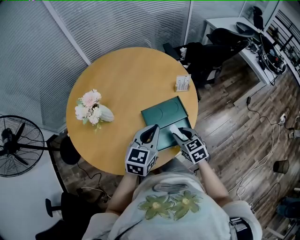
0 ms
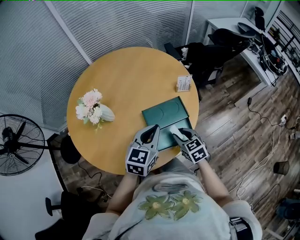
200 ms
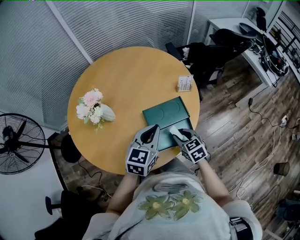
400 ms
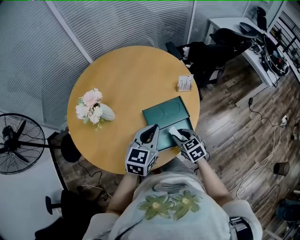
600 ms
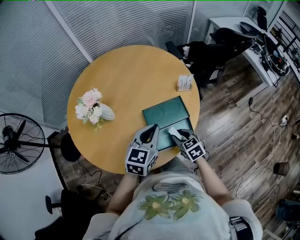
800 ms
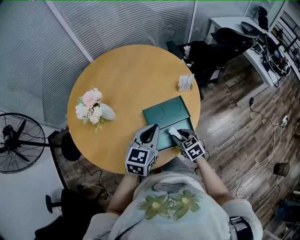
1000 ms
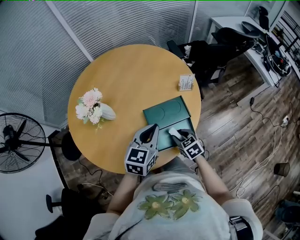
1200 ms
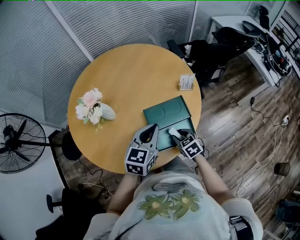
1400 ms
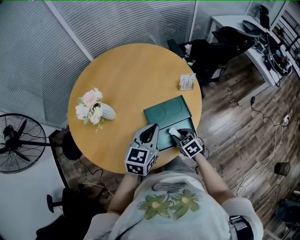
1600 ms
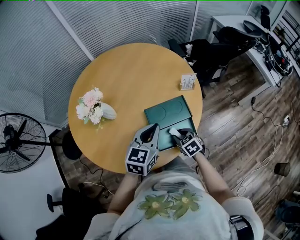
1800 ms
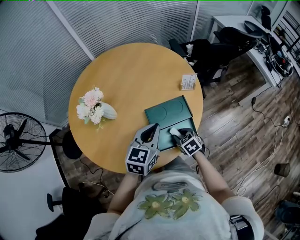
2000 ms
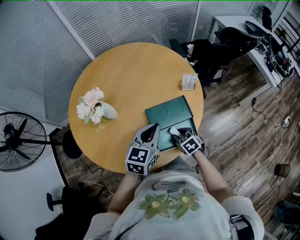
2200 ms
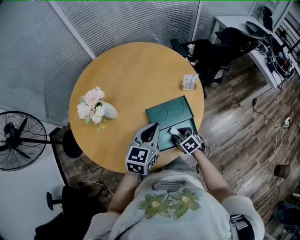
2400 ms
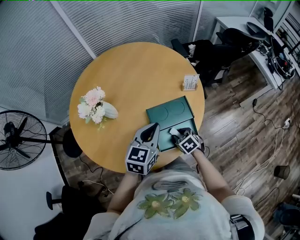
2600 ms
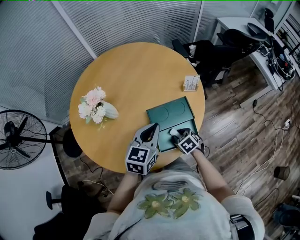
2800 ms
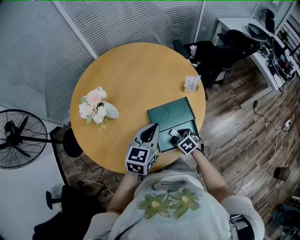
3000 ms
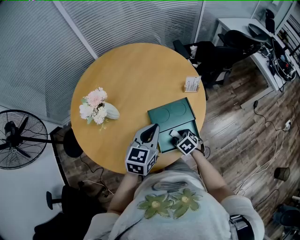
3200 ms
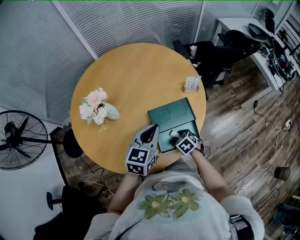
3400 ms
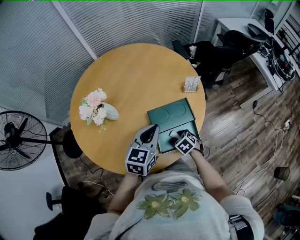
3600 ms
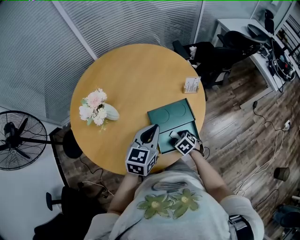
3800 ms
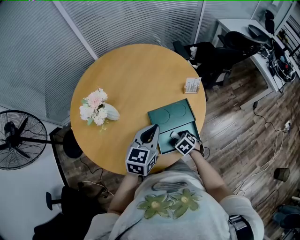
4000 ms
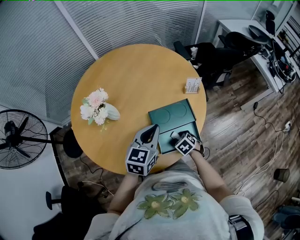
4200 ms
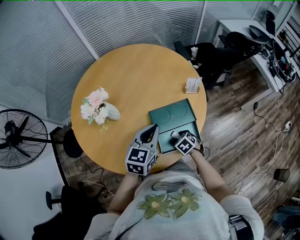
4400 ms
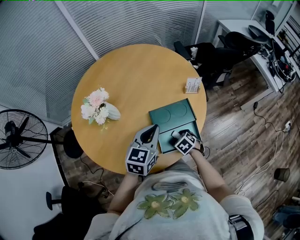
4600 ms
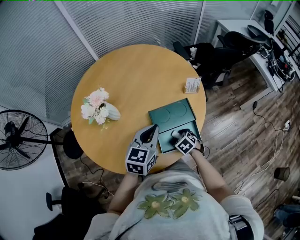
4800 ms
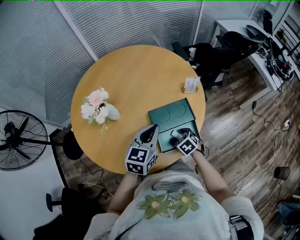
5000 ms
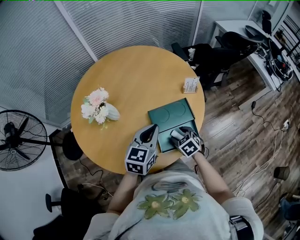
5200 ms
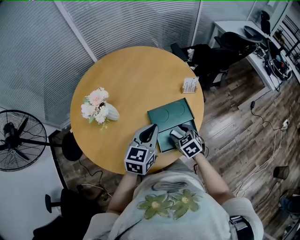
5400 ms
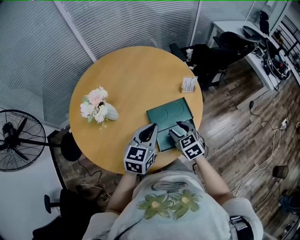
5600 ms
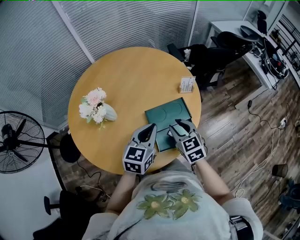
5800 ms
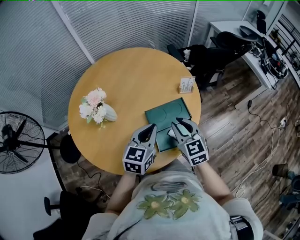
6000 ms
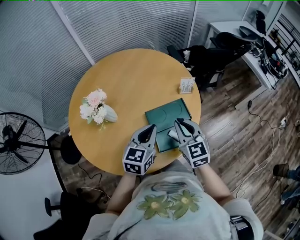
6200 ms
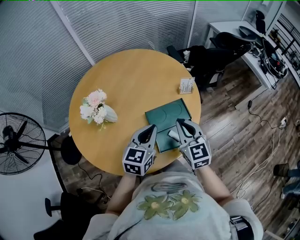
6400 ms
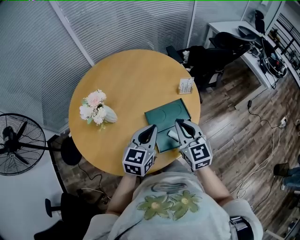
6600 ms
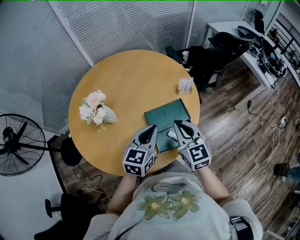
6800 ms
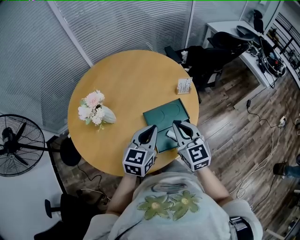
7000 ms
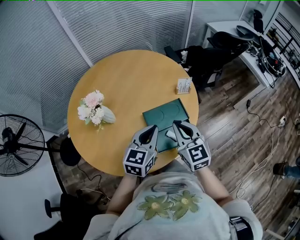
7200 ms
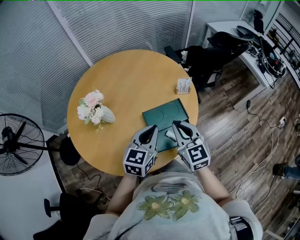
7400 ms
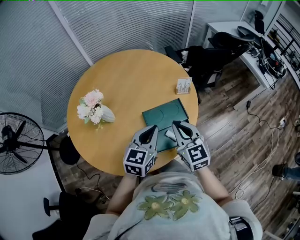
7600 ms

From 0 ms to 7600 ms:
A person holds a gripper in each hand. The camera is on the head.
From 0 ms to 1600 ms: The right gripper shifts roughly 10 cm downward.
From 1600 ms to 3000 ms: The grippers move only a little.
From 3000 ms to 4600 ms: The right gripper opens its fingers.
From 4600 ms to 6000 ms: The right gripper heads upward, covering about 25 cm, tips its fingers upward by some 50 degrees, and closes.
From 6000 ms to 7600 ms: The grippers make only small movements.

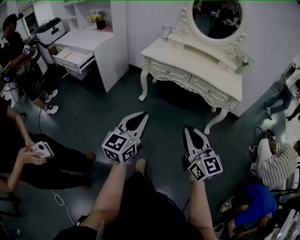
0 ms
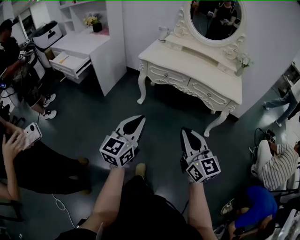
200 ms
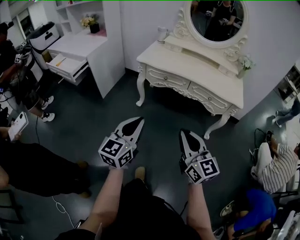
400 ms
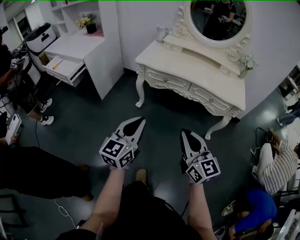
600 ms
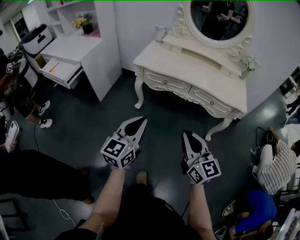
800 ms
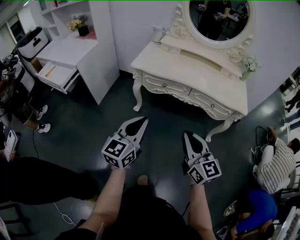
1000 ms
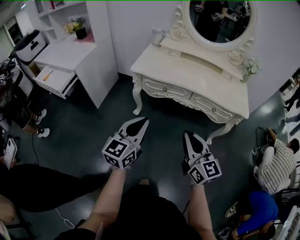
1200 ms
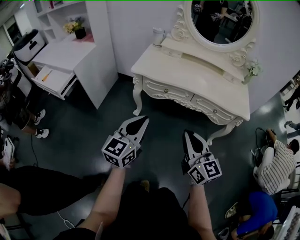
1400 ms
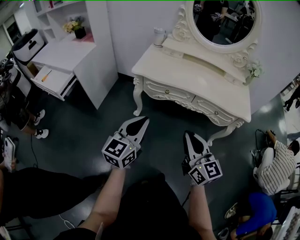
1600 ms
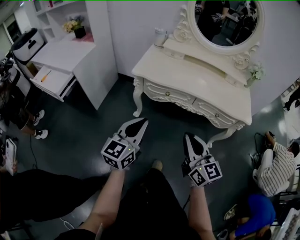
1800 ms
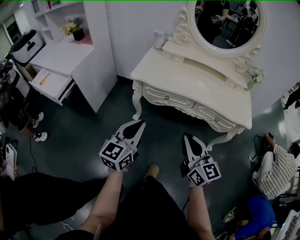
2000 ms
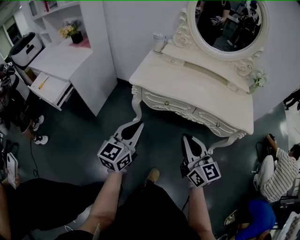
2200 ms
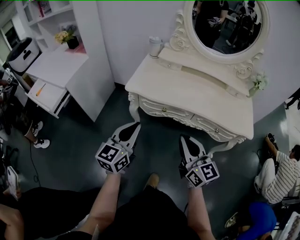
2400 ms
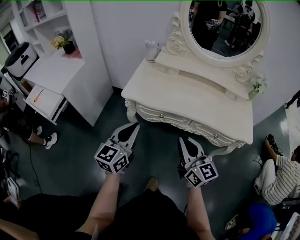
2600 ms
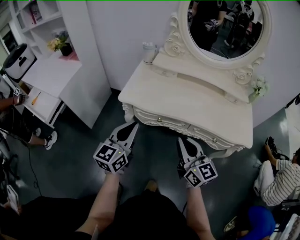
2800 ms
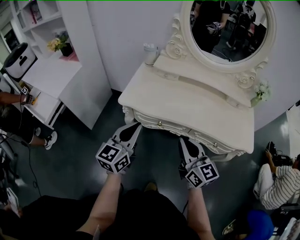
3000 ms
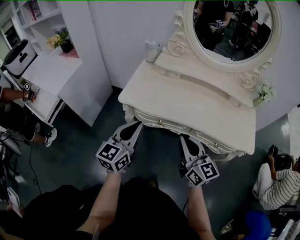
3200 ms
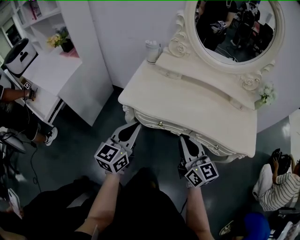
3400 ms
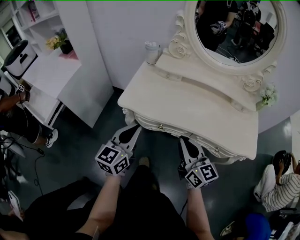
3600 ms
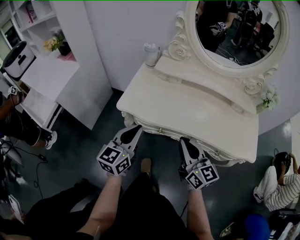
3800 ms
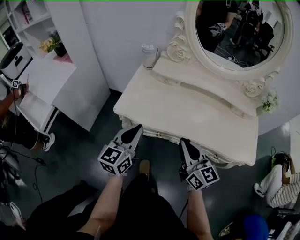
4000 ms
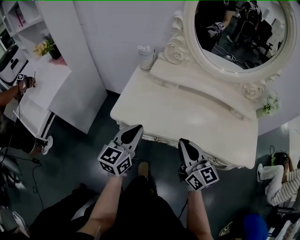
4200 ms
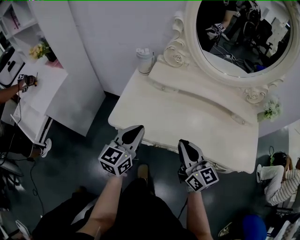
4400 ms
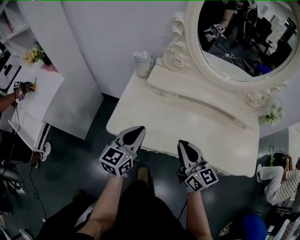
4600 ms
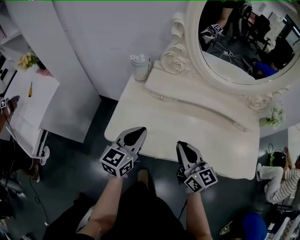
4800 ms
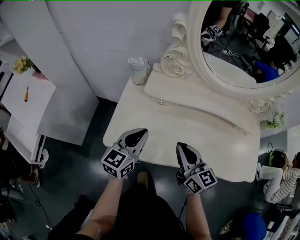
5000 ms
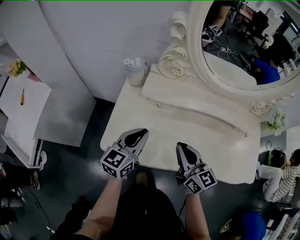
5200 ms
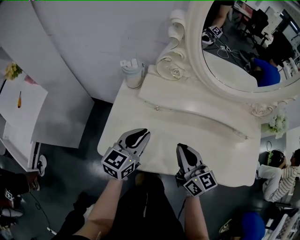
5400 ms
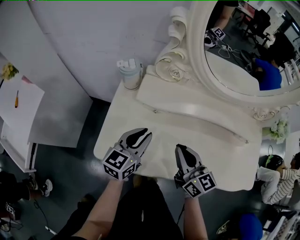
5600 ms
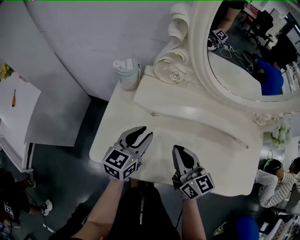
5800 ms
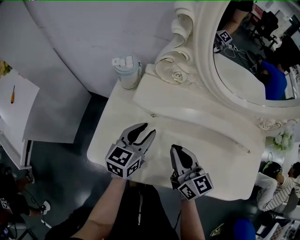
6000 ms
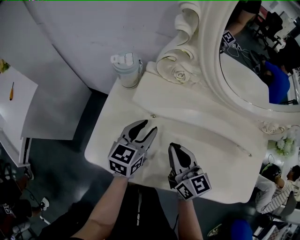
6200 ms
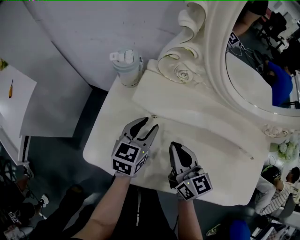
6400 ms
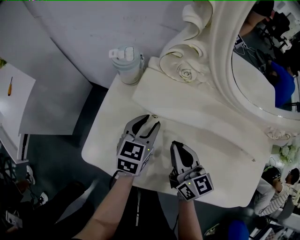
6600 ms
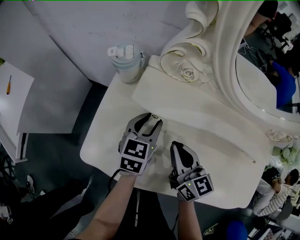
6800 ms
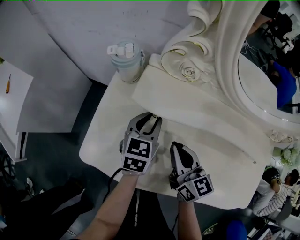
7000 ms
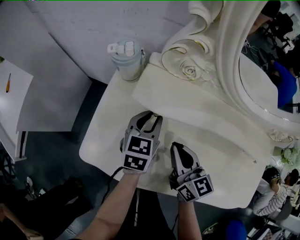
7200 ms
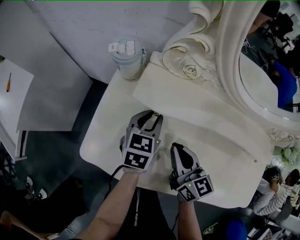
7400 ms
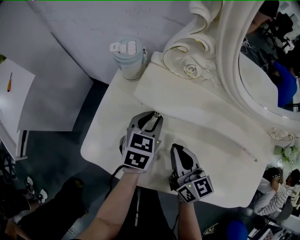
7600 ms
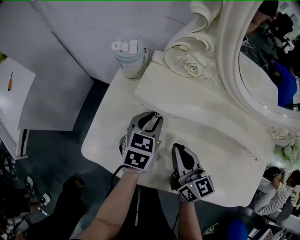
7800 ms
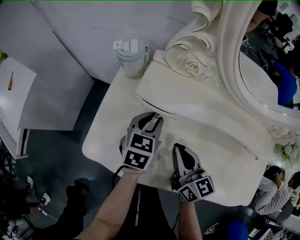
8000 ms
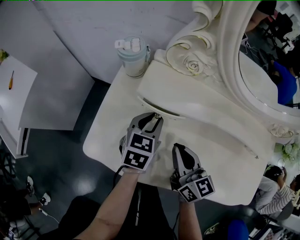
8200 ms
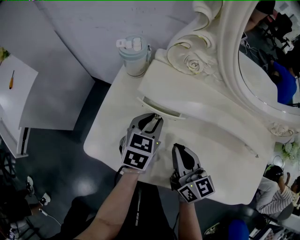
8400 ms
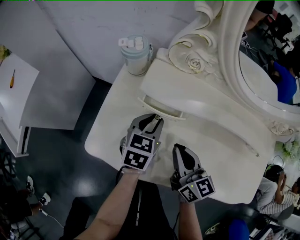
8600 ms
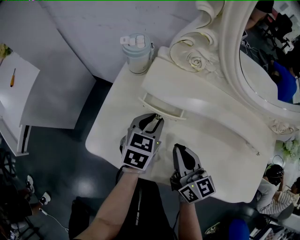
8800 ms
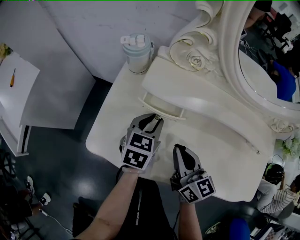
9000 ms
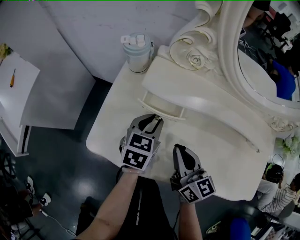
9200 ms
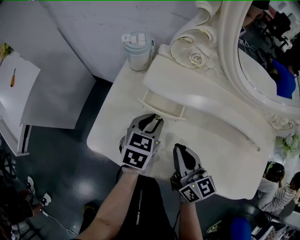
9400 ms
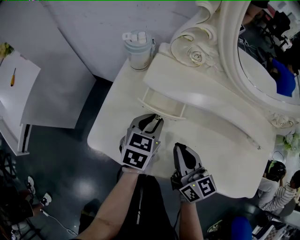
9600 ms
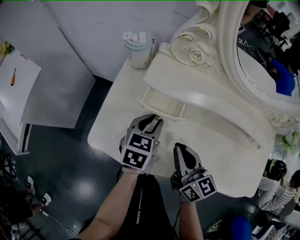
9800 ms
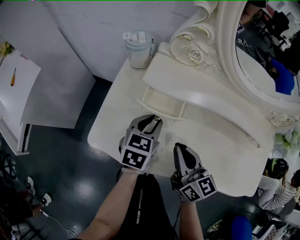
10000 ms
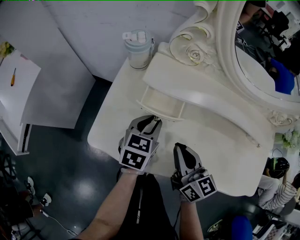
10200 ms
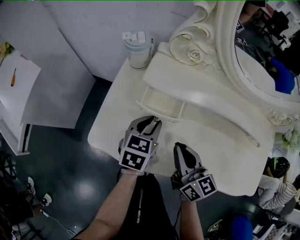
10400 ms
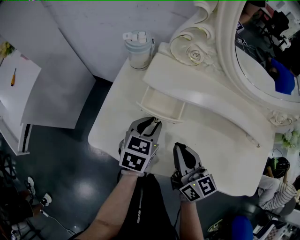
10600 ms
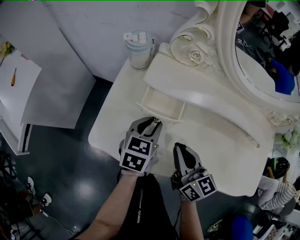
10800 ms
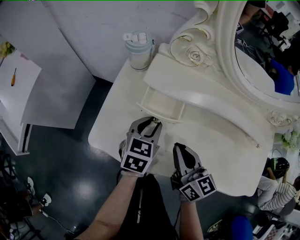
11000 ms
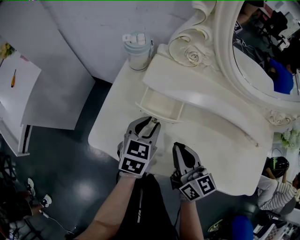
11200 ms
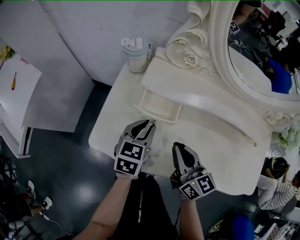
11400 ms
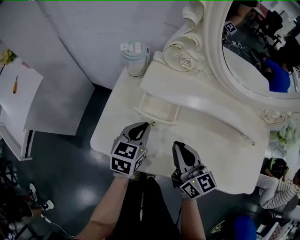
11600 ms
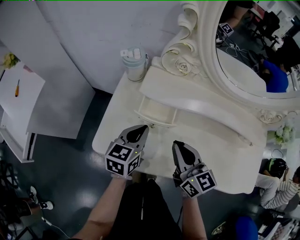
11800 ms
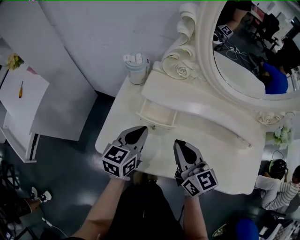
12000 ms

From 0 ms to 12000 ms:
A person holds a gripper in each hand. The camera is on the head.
From 0 ms to 1600 ms: Both grippers move forward, approximately 30 cm.
From 1600 ms to 3000 ms: Both grippers move forward, approximately 25 cm.
From 3000 ms to 4400 ms: The grippers both shift forward by roughly 15 cm.
From 4400 ms to 6000 ms: The right gripper heads forward, covering some 20 cm, while the left gripper travels forward and downward by roughly 25 cm, and opens its fingers.
From 6000 ms to 7600 ms: The left gripper shifts approximately 10 cm downward and forward, and changes its angle by some 20 degrees. The right gripper shifts by approximately 5 cm.
From 7600 ms to 9000 ms: There are only small adjustments of the grippers.
From 9000 ms to 10400 ms: The grippers make only small movements.
From 10400 ms to 12000 ms: The two grippers go some 5 cm upward. The left gripper closes up.

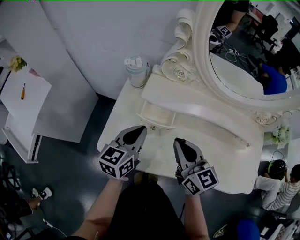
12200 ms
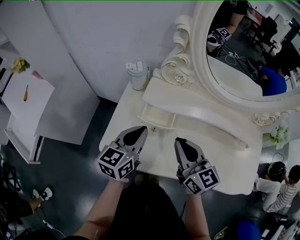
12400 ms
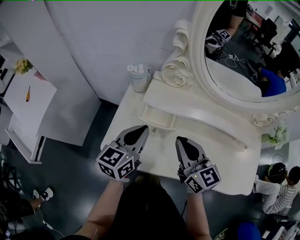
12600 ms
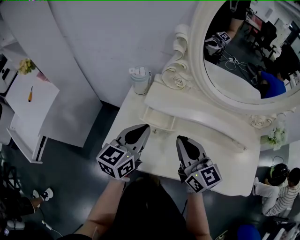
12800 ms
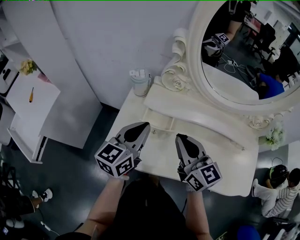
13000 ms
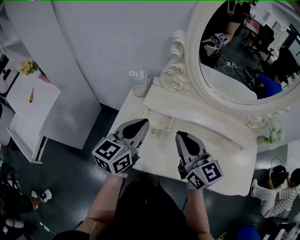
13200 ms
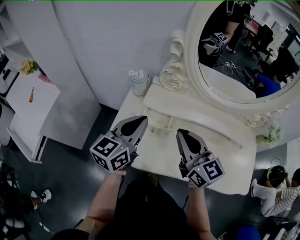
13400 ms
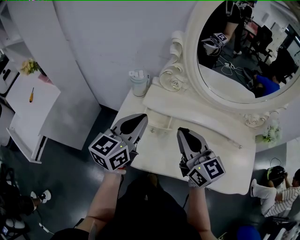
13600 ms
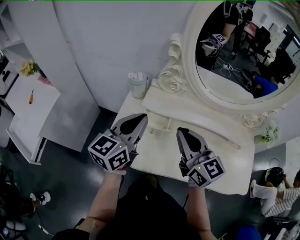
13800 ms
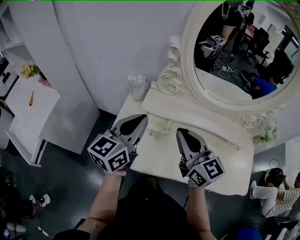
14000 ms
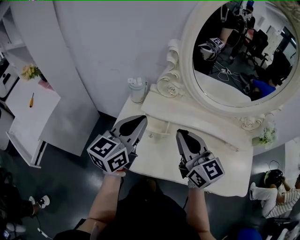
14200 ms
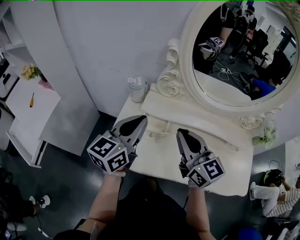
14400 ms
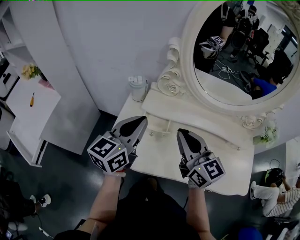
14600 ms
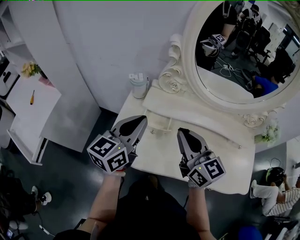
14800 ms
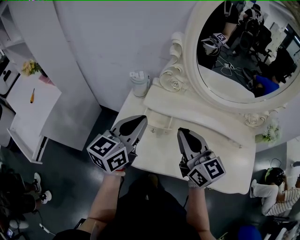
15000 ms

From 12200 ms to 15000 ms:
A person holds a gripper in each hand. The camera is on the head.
From 12200 ms to 13600 ms: Both grippers move upward, some 15 cm.
From 13600 ms to 15000 ms: There are only small adjustments of the grippers.

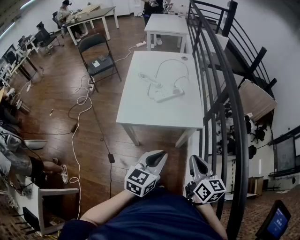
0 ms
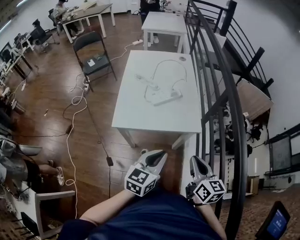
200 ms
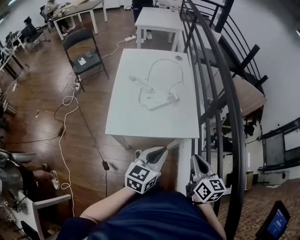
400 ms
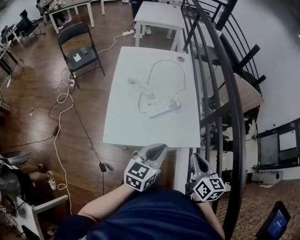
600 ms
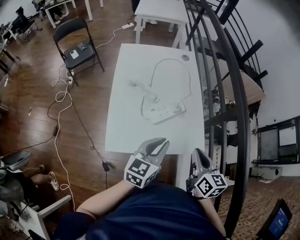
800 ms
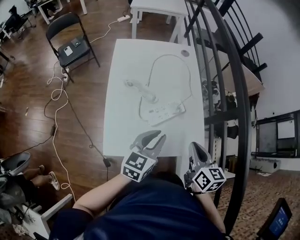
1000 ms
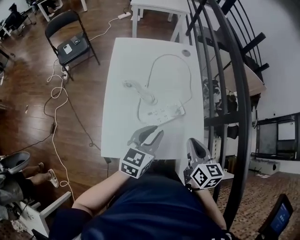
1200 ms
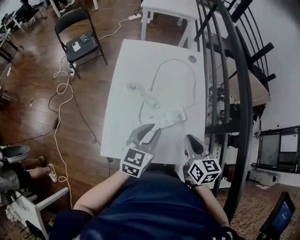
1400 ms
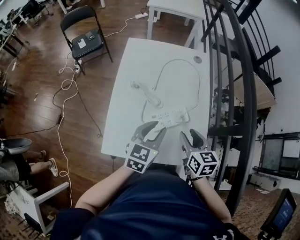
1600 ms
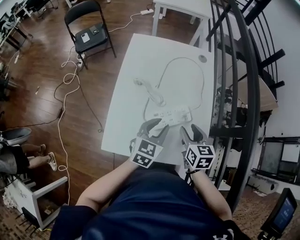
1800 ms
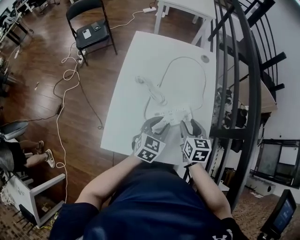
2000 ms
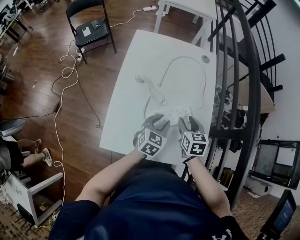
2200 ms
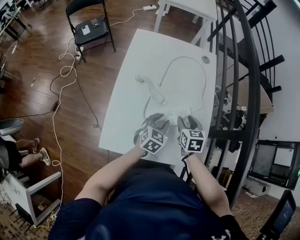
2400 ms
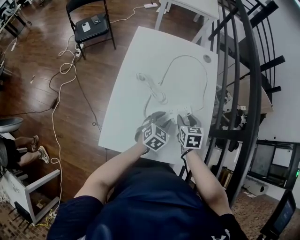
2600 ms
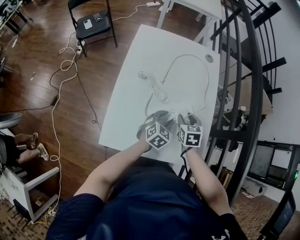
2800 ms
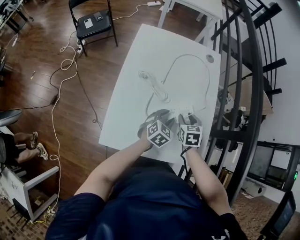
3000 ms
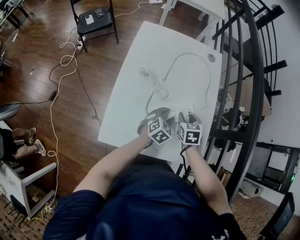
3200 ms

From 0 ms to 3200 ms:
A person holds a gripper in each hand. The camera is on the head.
From 0 ms to 1600 ms: The two grippers go about 40 cm forward. The left gripper opens its fingers. The right gripper changes its angle by approximately 20 degrees, and opens up.
From 1600 ms to 3200 ms: The left gripper shifts about 20 cm downward, and turns by about 30 degrees, while the right gripper goes some 15 cm downward and forward, and rotates roughly 30 degrees.
